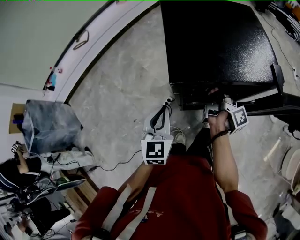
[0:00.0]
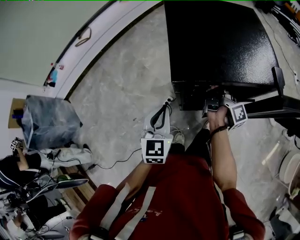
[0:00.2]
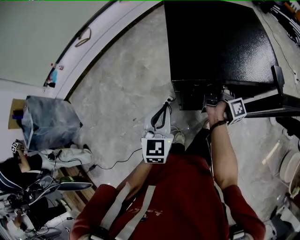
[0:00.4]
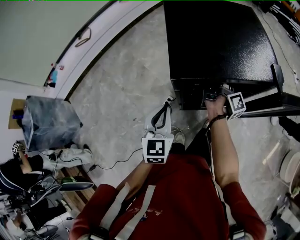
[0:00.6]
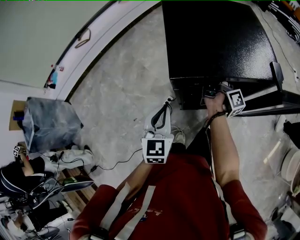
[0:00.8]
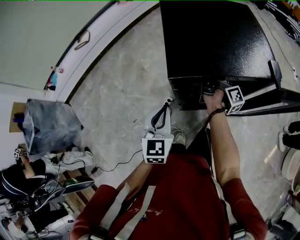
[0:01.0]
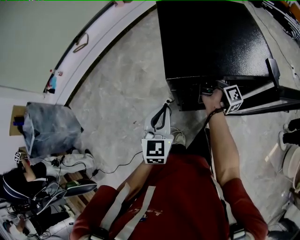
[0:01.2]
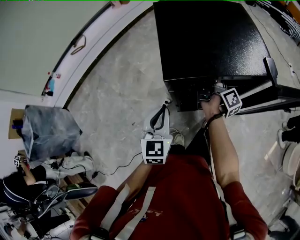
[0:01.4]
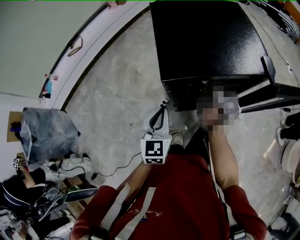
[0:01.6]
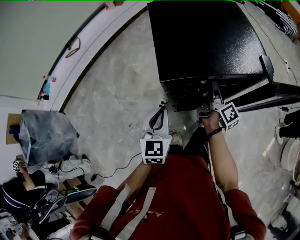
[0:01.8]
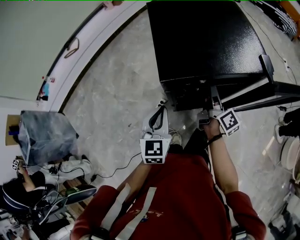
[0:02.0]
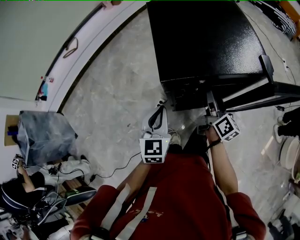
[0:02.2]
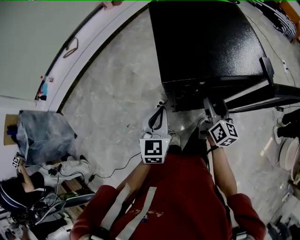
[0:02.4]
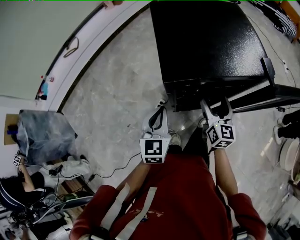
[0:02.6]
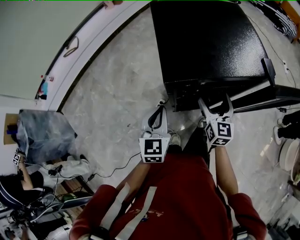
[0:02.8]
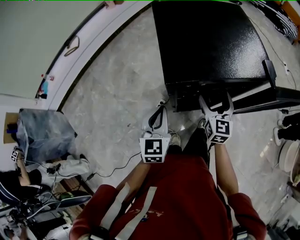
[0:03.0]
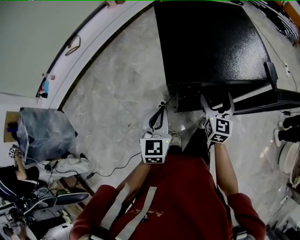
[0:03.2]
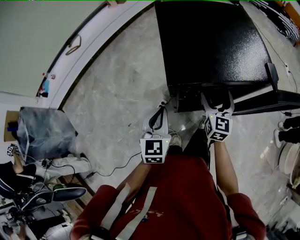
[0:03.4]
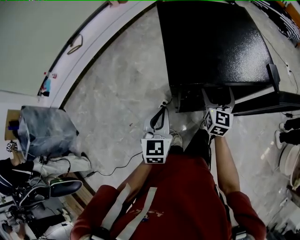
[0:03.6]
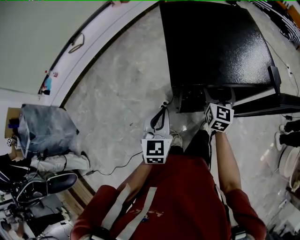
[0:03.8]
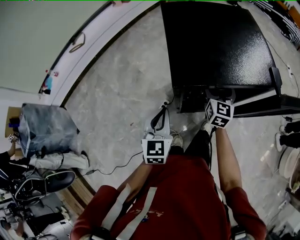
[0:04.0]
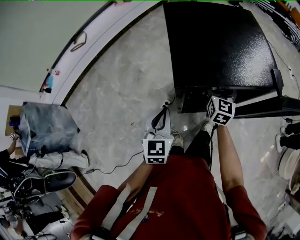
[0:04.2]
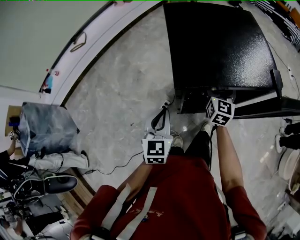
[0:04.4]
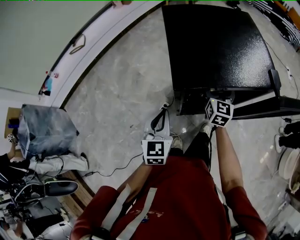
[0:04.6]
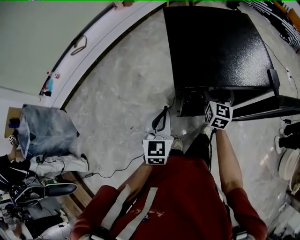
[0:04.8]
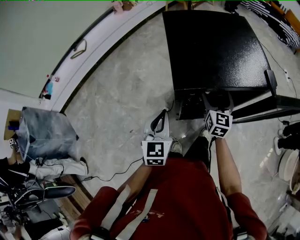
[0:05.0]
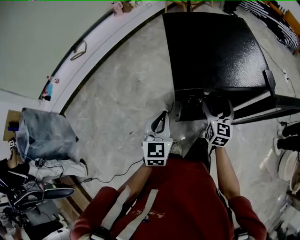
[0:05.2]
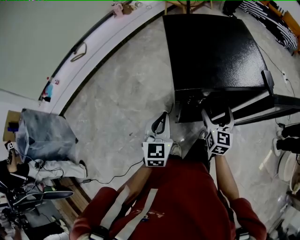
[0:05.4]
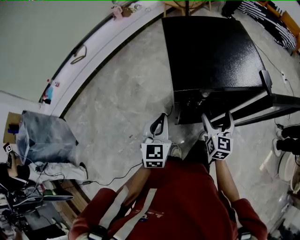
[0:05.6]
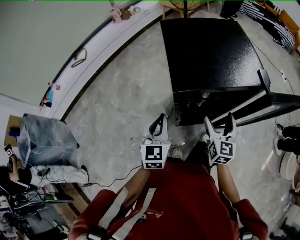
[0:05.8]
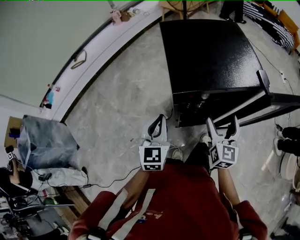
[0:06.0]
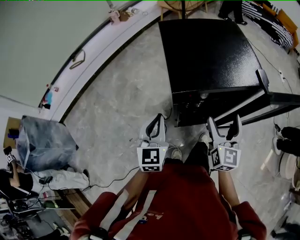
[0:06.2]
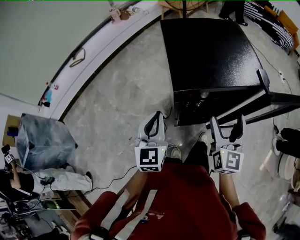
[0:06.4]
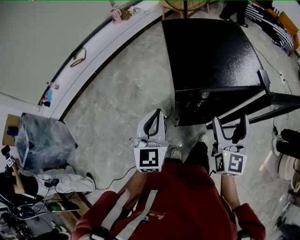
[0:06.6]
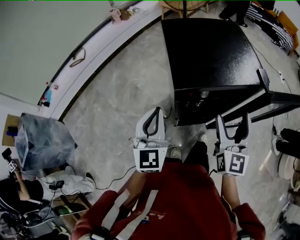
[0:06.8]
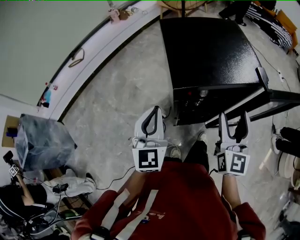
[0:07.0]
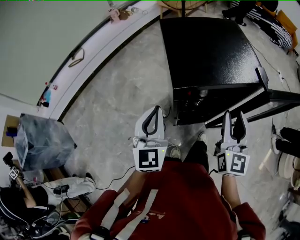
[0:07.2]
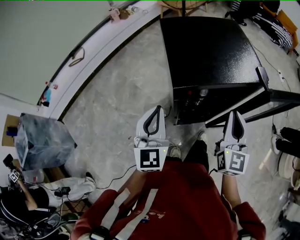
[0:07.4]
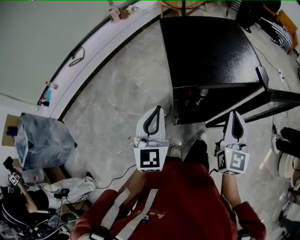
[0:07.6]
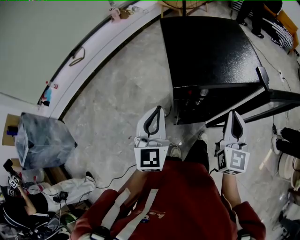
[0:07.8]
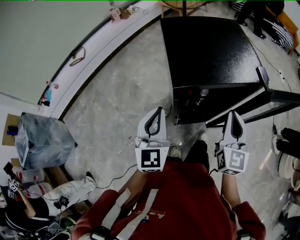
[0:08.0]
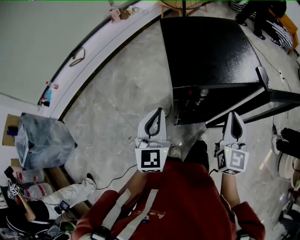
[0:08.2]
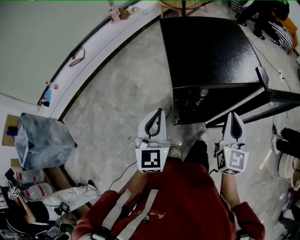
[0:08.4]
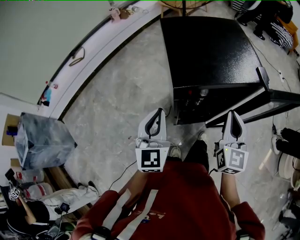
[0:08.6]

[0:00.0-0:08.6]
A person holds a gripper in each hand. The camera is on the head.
0:00.0 to 0:01.4: The right gripper is displaced forward by approximately 5 cm, and opens its fingers.
0:01.4 to 0:02.8: The right gripper goes roughly 10 cm backward, rotates around the line of its fingers by approximately 80 degrees, counterclockwise from behind, and opens its fingers.
0:02.8 to 0:04.4: The right gripper travels forward by some 10 cm.
0:04.4 to 0:05.8: The right gripper travels backward by some 15 cm.
0:05.8 to 0:07.2: The two grippers go approximately 10 cm upward. The right gripper closes up.
0:07.2 to 0:08.6: The right gripper closes.

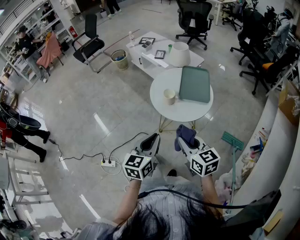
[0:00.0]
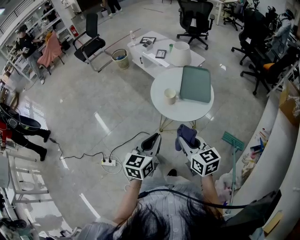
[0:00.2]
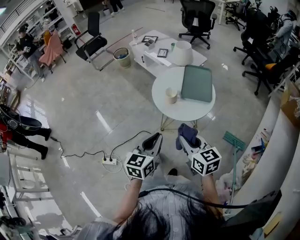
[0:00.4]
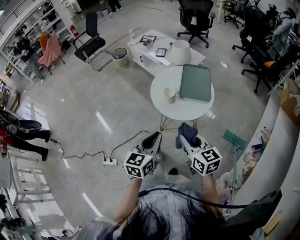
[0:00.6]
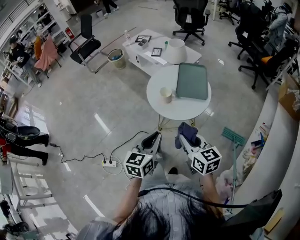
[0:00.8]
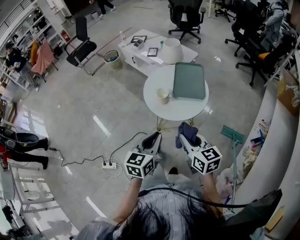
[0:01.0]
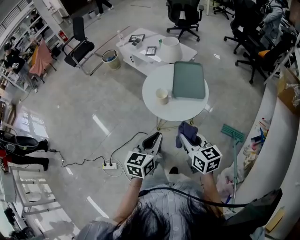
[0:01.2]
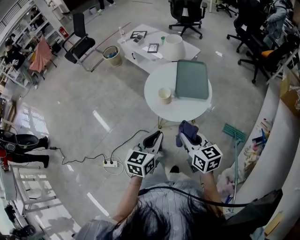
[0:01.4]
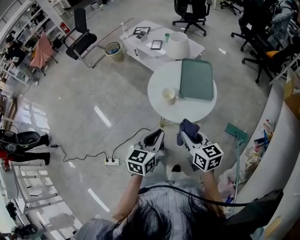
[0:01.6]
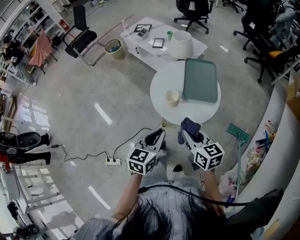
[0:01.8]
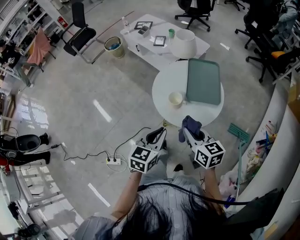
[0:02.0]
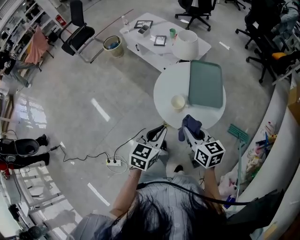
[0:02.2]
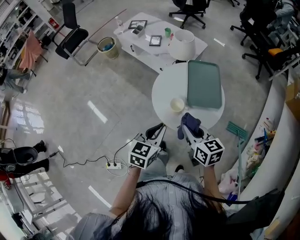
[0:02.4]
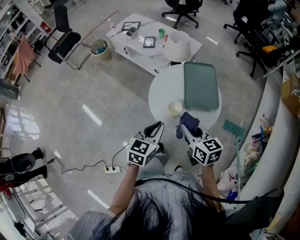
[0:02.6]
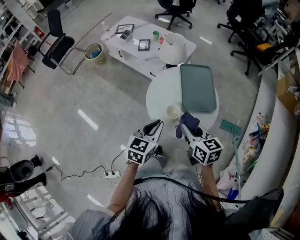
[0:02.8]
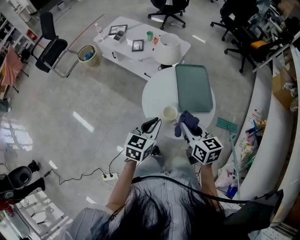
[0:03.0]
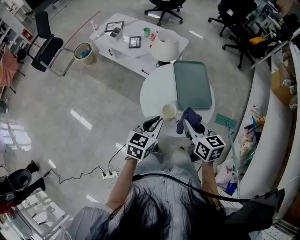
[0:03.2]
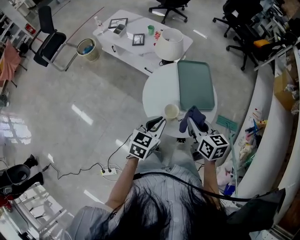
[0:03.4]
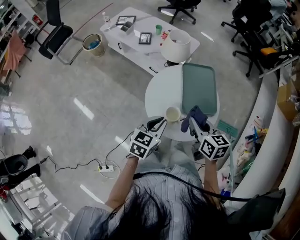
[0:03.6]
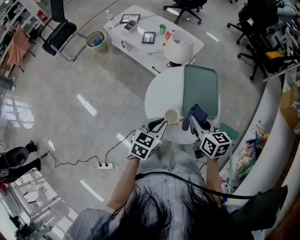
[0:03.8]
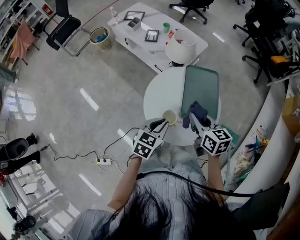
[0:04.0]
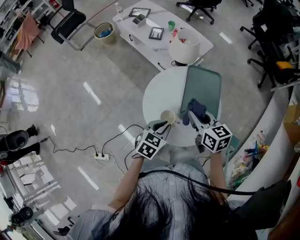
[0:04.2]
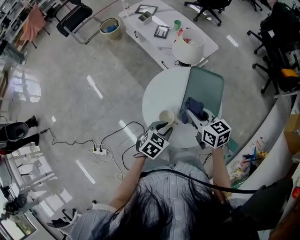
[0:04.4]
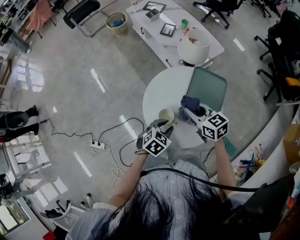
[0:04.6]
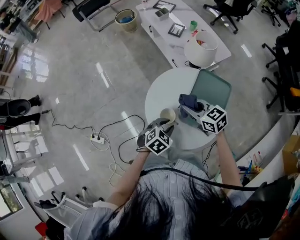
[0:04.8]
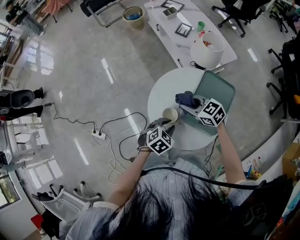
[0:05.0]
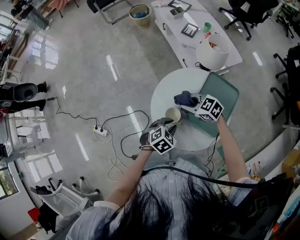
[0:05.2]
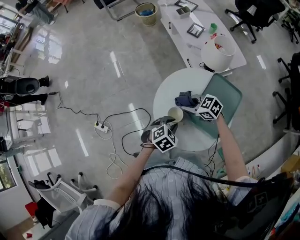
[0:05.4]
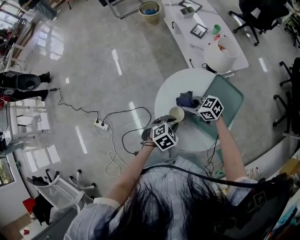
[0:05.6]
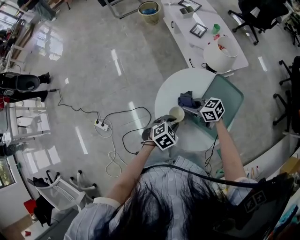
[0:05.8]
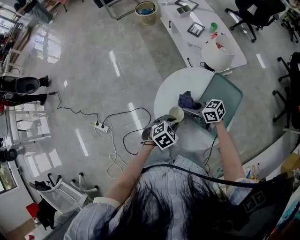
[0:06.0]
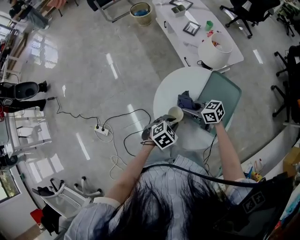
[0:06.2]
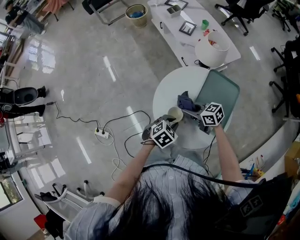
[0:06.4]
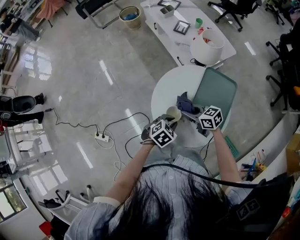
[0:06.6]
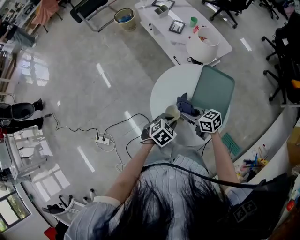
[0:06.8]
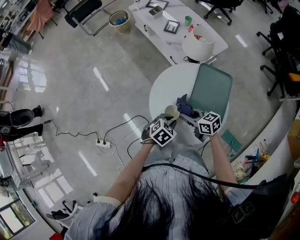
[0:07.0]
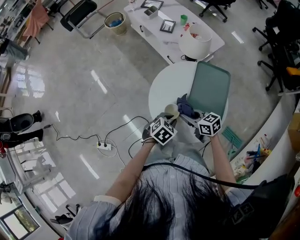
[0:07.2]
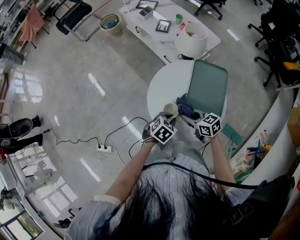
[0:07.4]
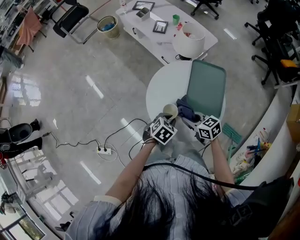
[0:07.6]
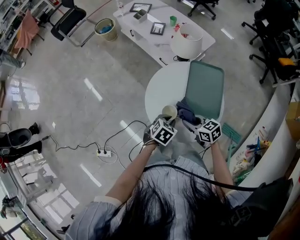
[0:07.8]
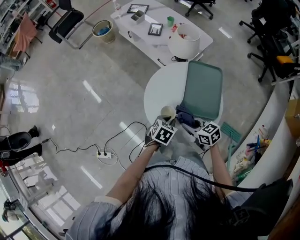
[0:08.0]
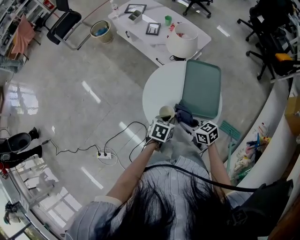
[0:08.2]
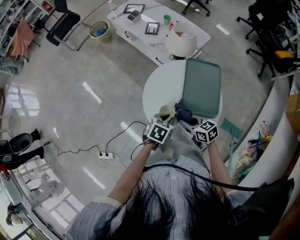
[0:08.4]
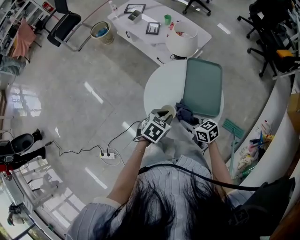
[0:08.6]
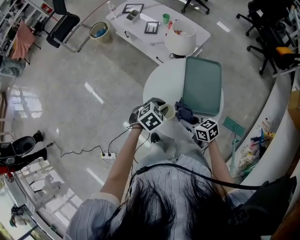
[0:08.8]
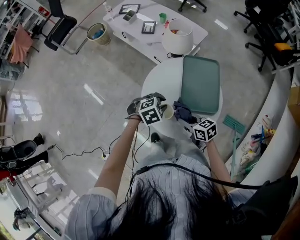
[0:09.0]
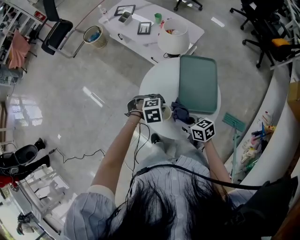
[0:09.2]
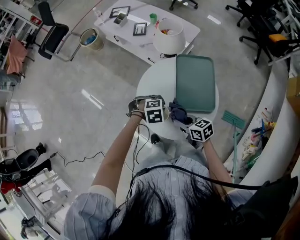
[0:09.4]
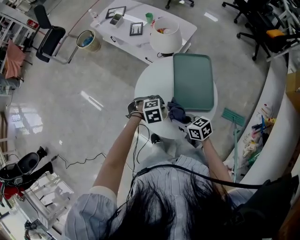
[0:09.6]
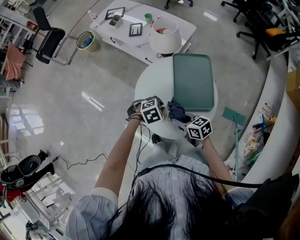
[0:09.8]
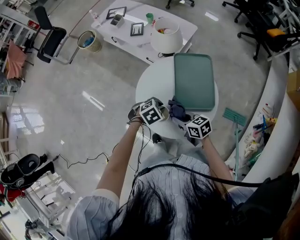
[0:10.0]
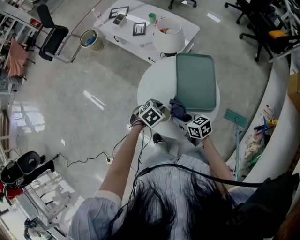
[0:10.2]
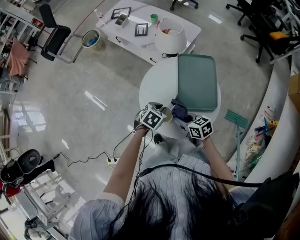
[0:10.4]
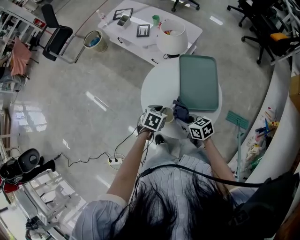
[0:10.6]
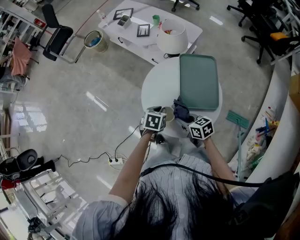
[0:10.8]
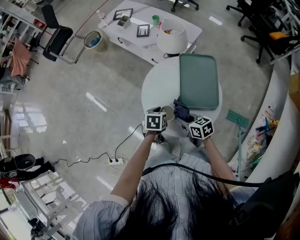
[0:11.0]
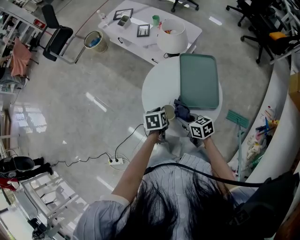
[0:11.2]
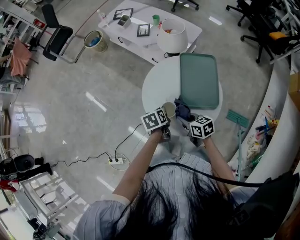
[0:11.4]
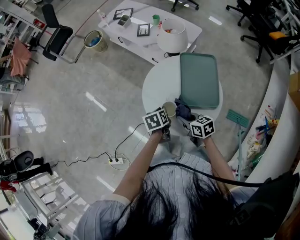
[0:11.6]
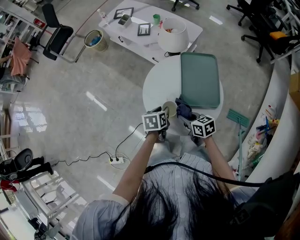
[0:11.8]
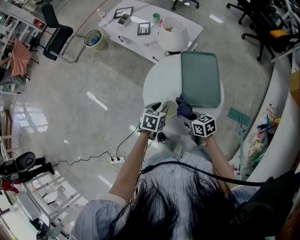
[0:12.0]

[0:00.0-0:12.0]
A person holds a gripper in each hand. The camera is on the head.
0:00.0 to 0:01.6: The two grippers go roughly 5 cm forward.
0:01.6 to 0:03.0: The two grippers go about 20 cm forward.
0:03.0 to 0:04.4: The left gripper heads downward and to the right, covering roughly 15 cm, and swivels some 20 degrees, while the right gripper goes some 15 cm forward, and swivels roughly 30 degrees.
0:04.4 to 0:06.0: The left gripper moves downward, about 5 cm, while the right gripper shifts some 10 cm downward, and swivels some 50 degrees.
0:06.0 to 0:07.6: The right gripper moves some 10 cm, and rotates about 30 degrees.
0:07.6 to 0:09.0: The left gripper shifts by roughly 5 cm, and changes its angle by approximately 40 degrees.
0:09.0 to 0:10.4: The left gripper changes its angle by roughly 30 degrees.
0:10.4 to 0:12.0: The left gripper rotates some 20 degrees.

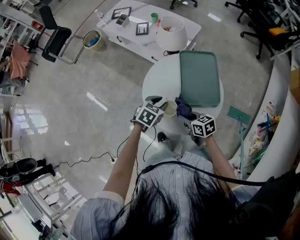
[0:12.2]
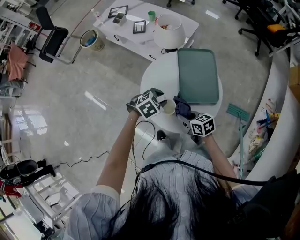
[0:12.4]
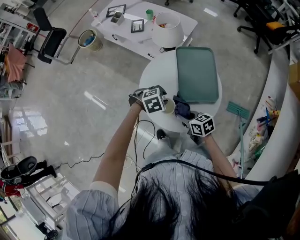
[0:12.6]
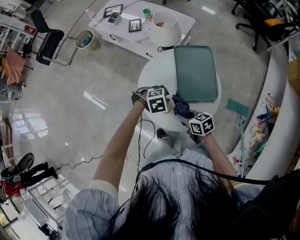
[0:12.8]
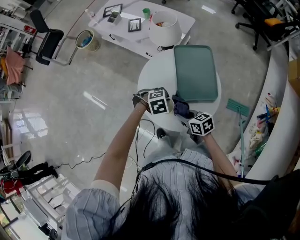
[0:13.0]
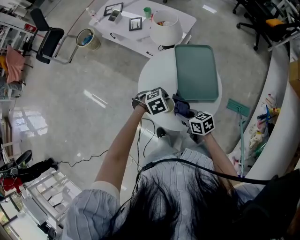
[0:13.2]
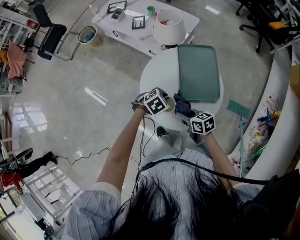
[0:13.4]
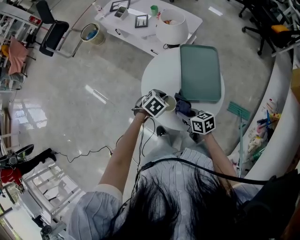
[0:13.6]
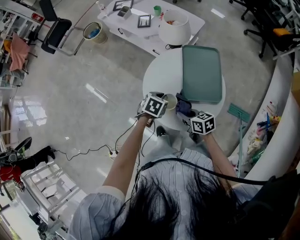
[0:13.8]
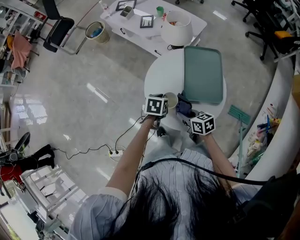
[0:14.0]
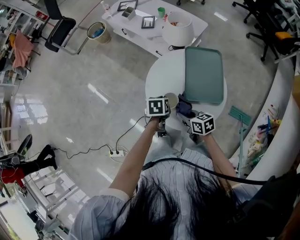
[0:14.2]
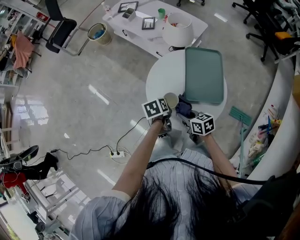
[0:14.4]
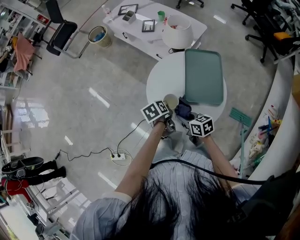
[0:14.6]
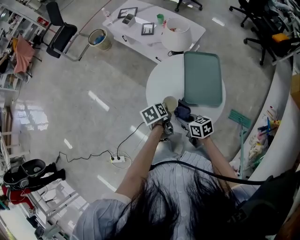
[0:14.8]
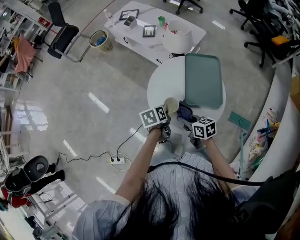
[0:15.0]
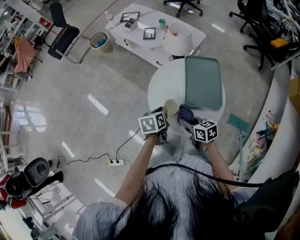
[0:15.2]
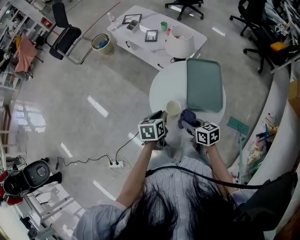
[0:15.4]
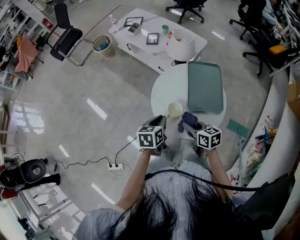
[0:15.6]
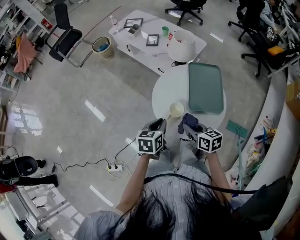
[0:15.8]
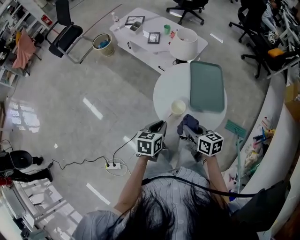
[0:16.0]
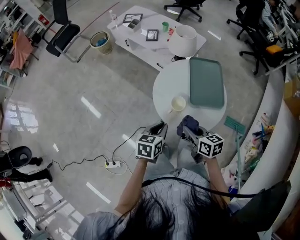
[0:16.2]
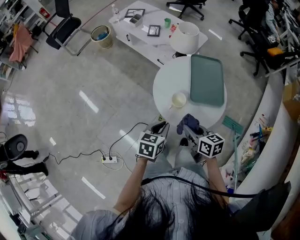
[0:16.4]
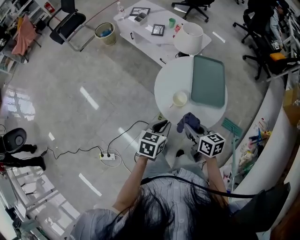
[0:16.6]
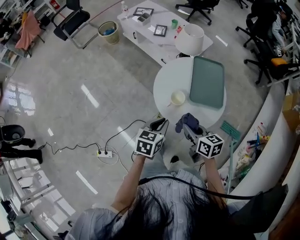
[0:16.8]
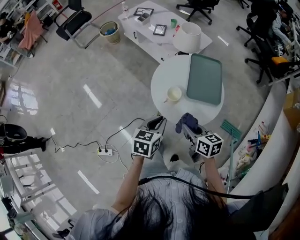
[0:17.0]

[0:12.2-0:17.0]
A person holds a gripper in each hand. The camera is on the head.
0:13.8 to 0:15.4: The right gripper moves some 5 cm; the left gripper shifts approximately 10 cm upward and to the left, and turns by about 40 degrees.
0:15.4 to 0:17.0: Both grippers travel together backward and upward, about 10 cm.
